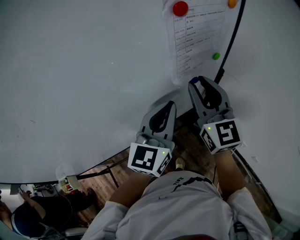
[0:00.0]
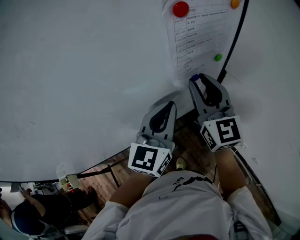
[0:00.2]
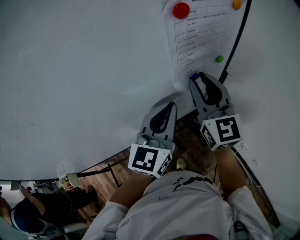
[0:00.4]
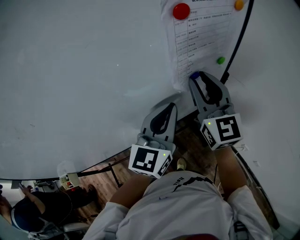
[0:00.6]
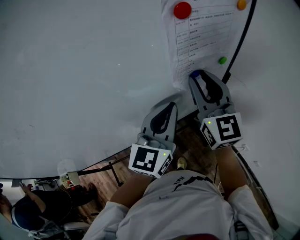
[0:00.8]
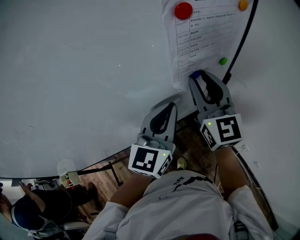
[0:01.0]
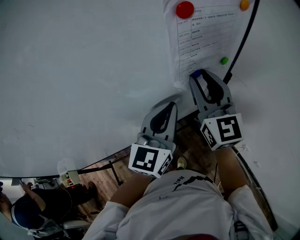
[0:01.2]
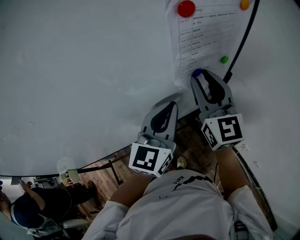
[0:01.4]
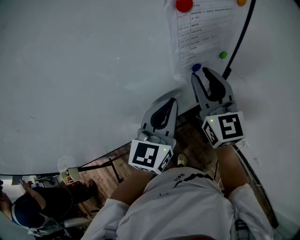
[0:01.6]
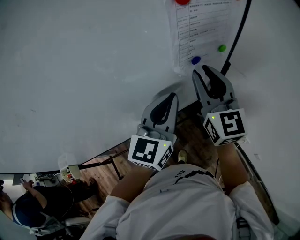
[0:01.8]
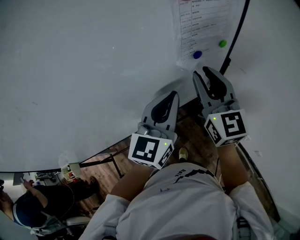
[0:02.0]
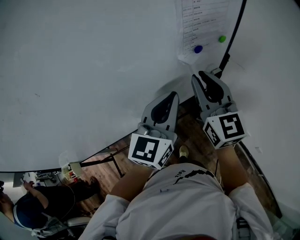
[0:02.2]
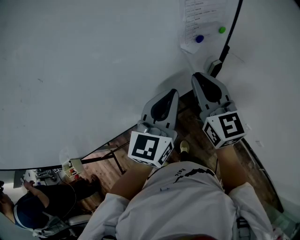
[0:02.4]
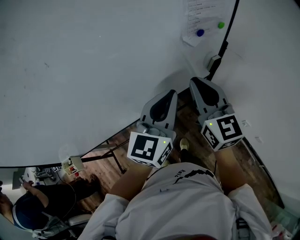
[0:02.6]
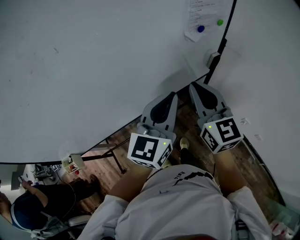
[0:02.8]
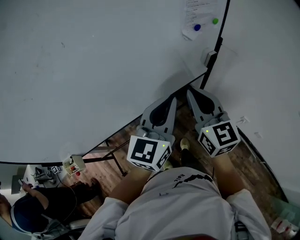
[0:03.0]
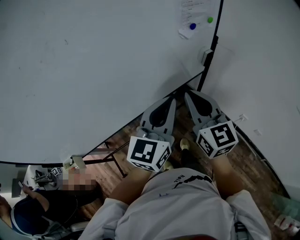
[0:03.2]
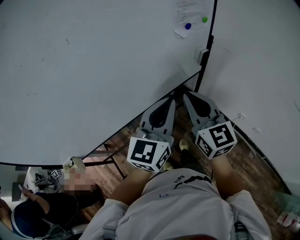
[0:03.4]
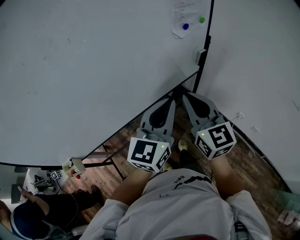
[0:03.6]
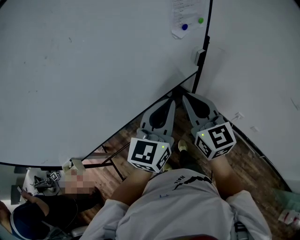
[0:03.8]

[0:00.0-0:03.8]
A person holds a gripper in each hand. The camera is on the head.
0:00.0 to 0:01.2: The grippers stay close to where they were, moving slightly.
0:01.2 to 0:02.6: The two grippers go some 15 cm backward. The right gripper closes up.
0:02.6 to 0:03.8: Both grippers move backward, approximately 10 cm.

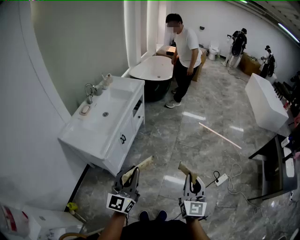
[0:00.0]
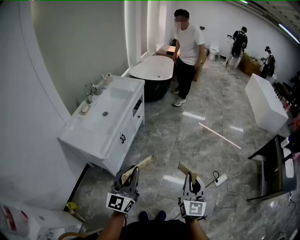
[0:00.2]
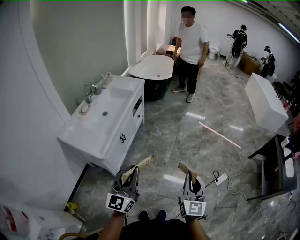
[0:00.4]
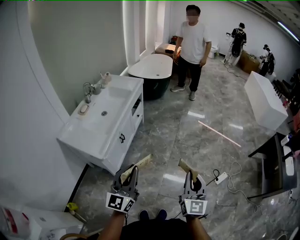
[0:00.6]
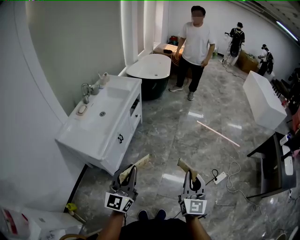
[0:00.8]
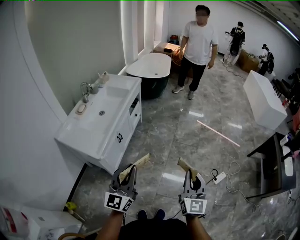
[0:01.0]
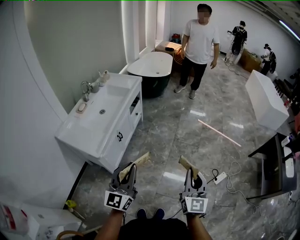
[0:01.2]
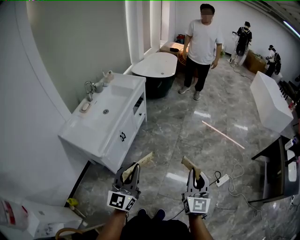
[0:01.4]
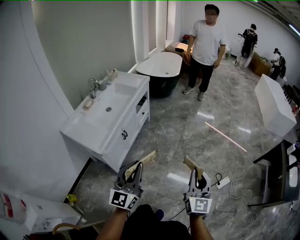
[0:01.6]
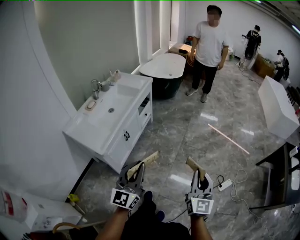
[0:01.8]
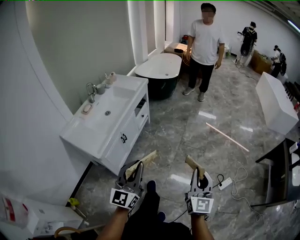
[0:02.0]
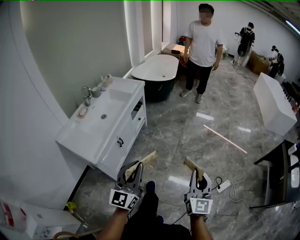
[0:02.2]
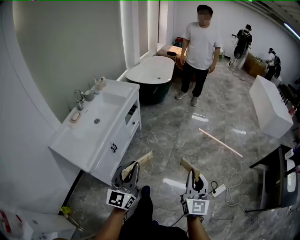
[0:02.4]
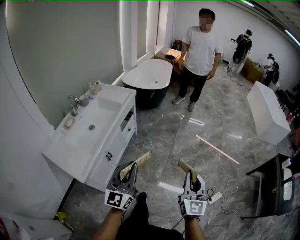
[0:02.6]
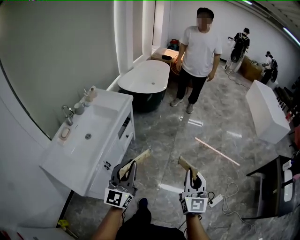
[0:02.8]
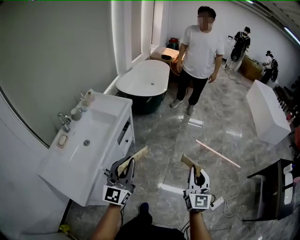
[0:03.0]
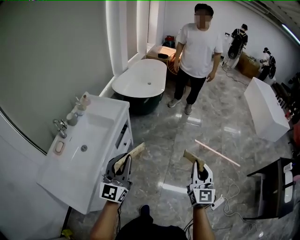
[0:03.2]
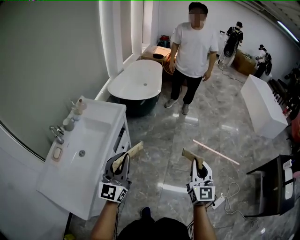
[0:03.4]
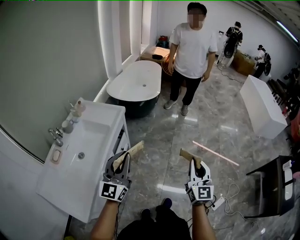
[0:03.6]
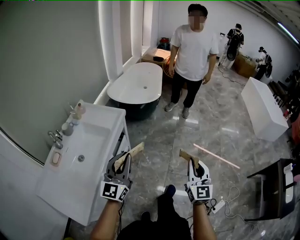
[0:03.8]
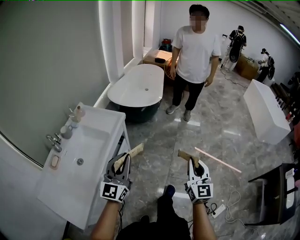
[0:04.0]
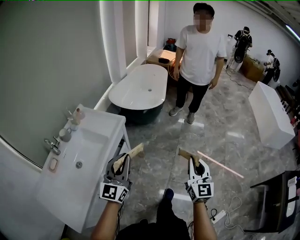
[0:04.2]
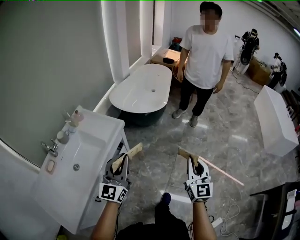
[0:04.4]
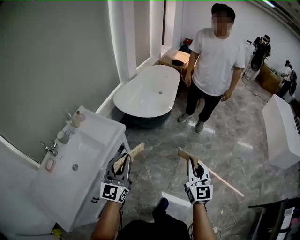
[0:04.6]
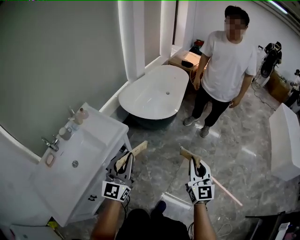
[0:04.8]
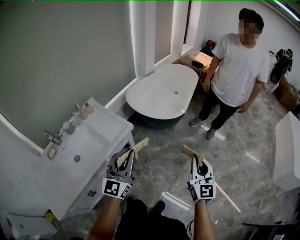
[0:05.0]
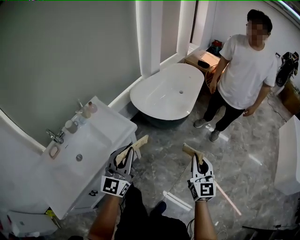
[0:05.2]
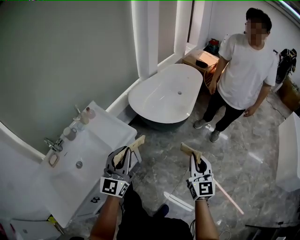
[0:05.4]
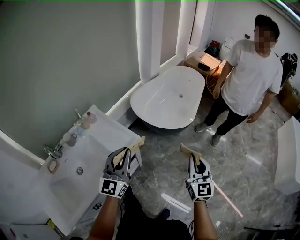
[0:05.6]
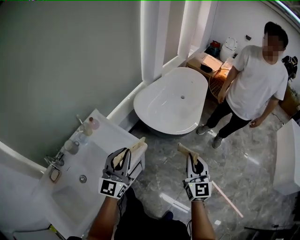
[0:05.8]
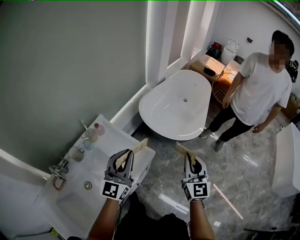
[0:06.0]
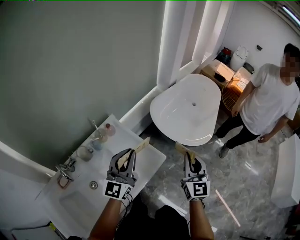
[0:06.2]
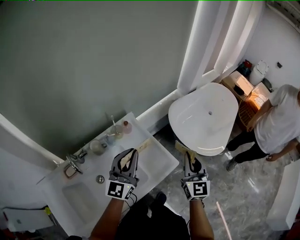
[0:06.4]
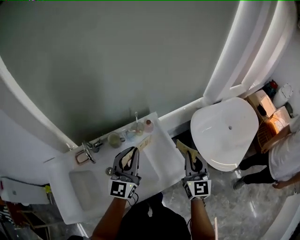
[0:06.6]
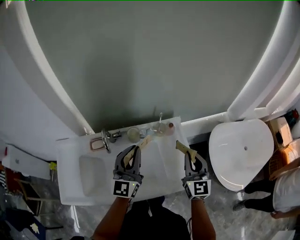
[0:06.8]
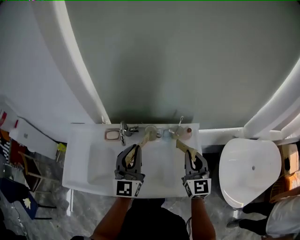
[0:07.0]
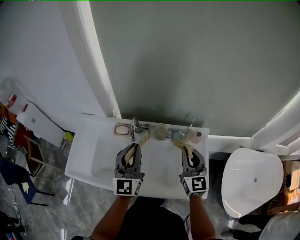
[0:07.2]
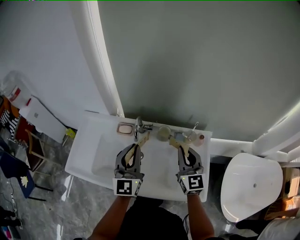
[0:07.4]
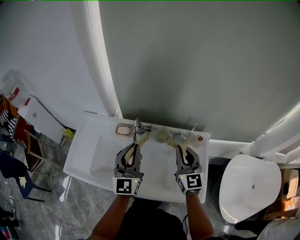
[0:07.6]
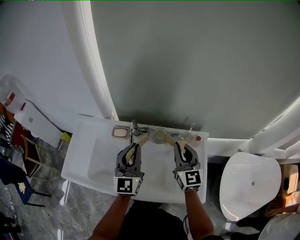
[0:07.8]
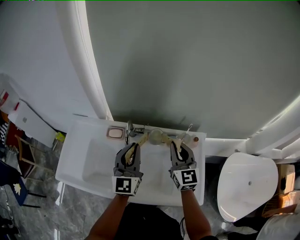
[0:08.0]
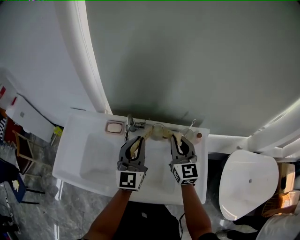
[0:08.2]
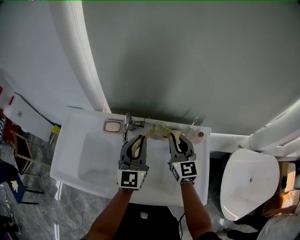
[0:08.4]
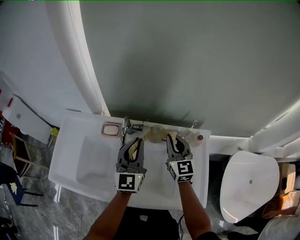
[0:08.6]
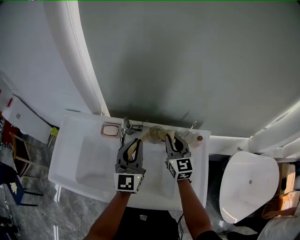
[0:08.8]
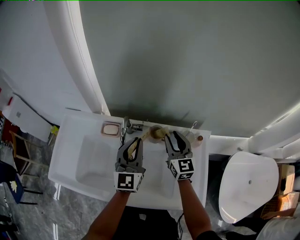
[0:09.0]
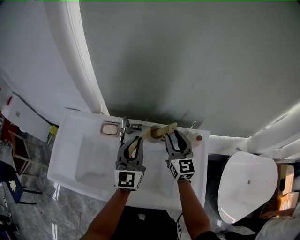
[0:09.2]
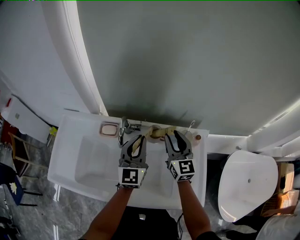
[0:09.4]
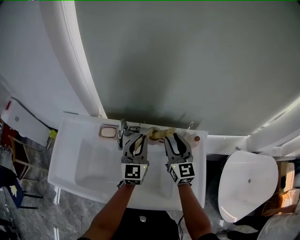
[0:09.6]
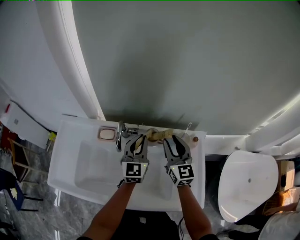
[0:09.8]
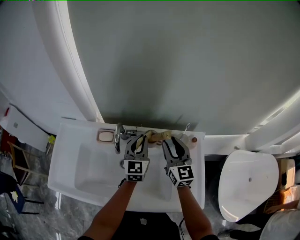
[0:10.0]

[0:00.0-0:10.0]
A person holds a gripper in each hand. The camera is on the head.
0:00.0 to 0:01.4: The left gripper shifts by roughly 5 cm, while the right gripper shifts by about 5 cm.
0:01.4 to 0:02.8: The grippers both shift forward by some 30 cm.
0:02.8 to 0:04.2: The grippers both shift forward by about 35 cm.
0:04.2 to 0:05.8: Both grippers move forward, some 40 cm.
0:05.8 to 0:07.2: The left gripper moves about 40 cm, and rotates about 70 degrees; the right gripper moves some 50 cm, and changes its angle by roughly 70 degrees.
0:07.2 to 0:08.6: The right gripper travels forward and downward by roughly 15 cm. The left gripper shifts about 15 cm downward and forward.
0:08.6 to 0:10.0: The left gripper moves downward, forward and to the right, about 10 cm. Meanwhile the right gripper opens up.

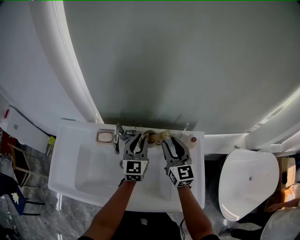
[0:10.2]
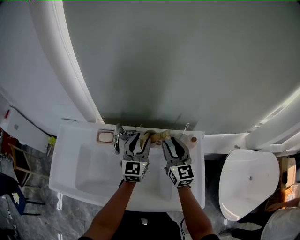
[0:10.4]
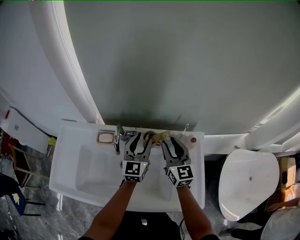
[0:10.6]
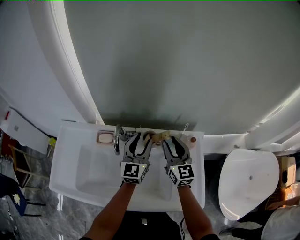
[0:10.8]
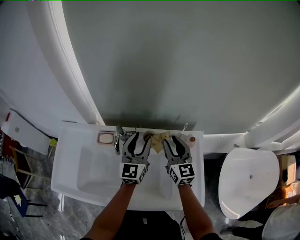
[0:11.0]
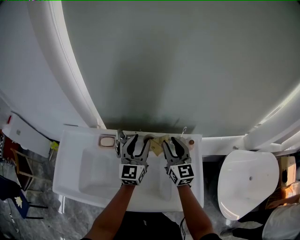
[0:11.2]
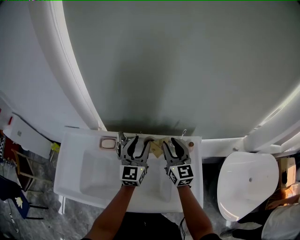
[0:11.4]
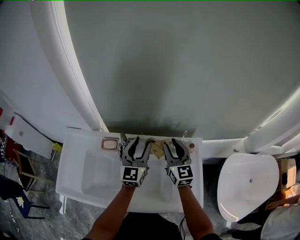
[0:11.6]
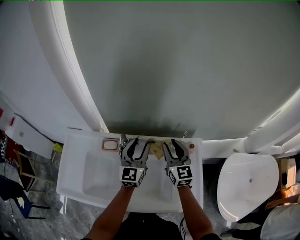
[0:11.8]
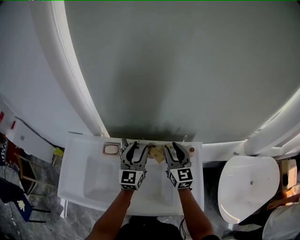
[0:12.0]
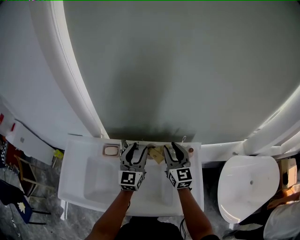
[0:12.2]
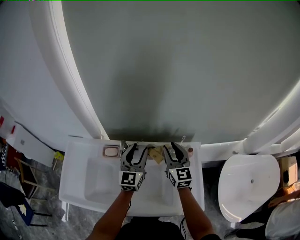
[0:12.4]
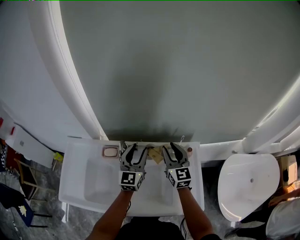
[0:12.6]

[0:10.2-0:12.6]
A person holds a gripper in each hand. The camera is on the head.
0:10.2 to 0:11.4: The left gripper heads upward, covering about 10 cm, and opens.
0:11.4 to 0:12.6: The grippers move only a little.

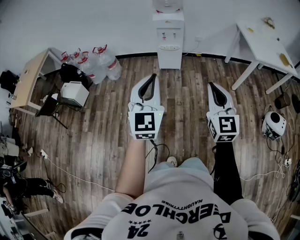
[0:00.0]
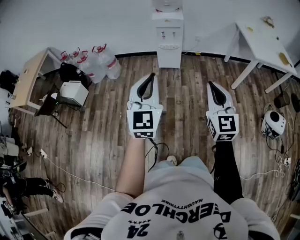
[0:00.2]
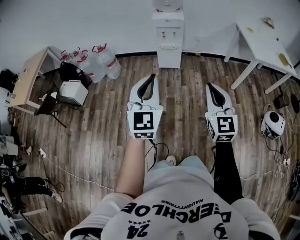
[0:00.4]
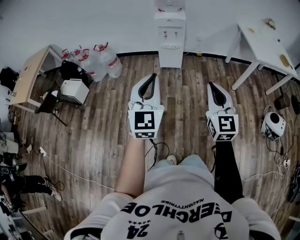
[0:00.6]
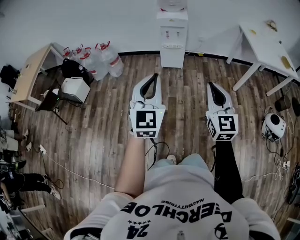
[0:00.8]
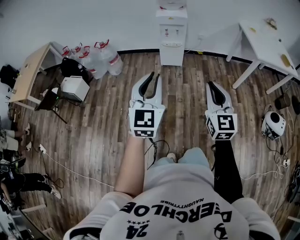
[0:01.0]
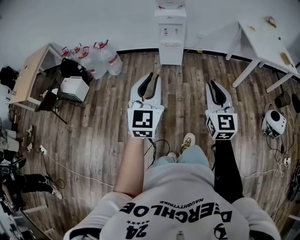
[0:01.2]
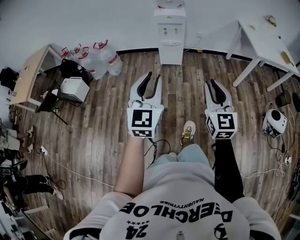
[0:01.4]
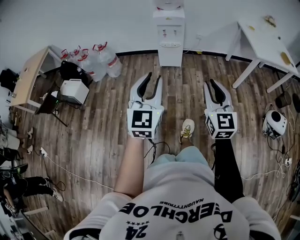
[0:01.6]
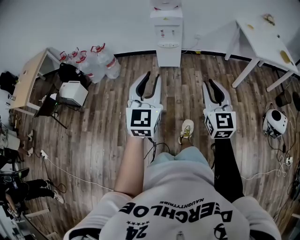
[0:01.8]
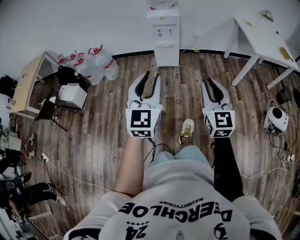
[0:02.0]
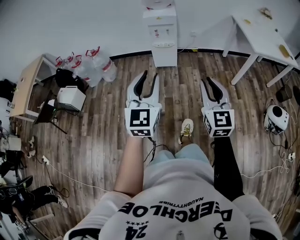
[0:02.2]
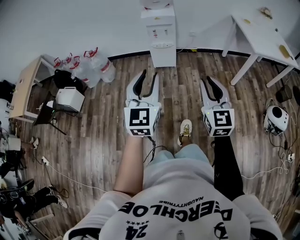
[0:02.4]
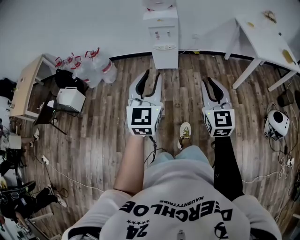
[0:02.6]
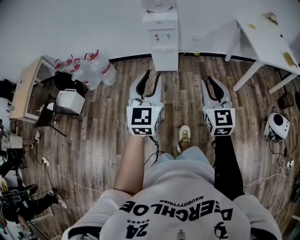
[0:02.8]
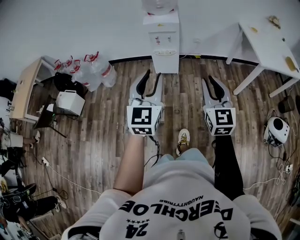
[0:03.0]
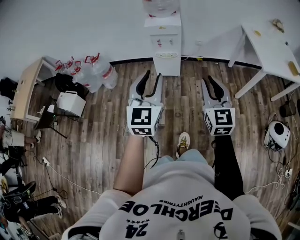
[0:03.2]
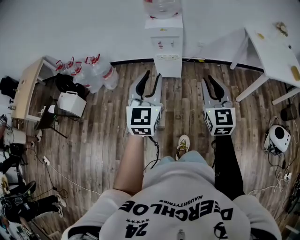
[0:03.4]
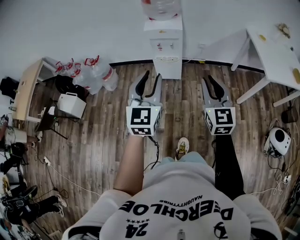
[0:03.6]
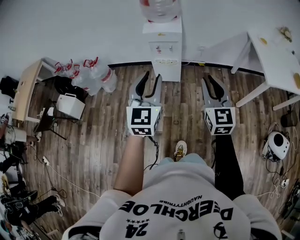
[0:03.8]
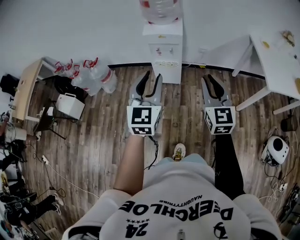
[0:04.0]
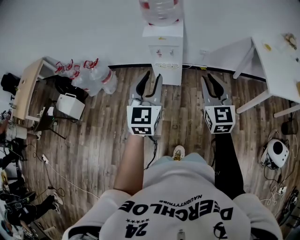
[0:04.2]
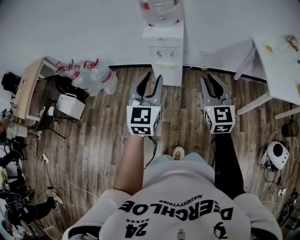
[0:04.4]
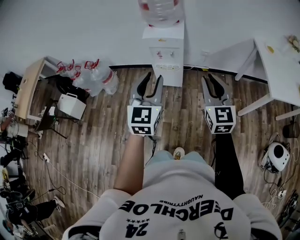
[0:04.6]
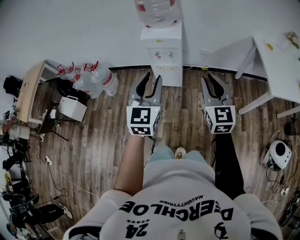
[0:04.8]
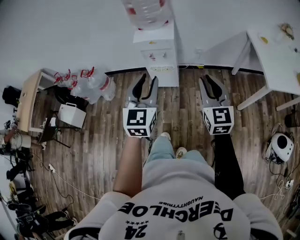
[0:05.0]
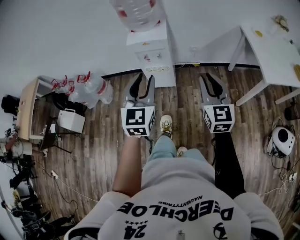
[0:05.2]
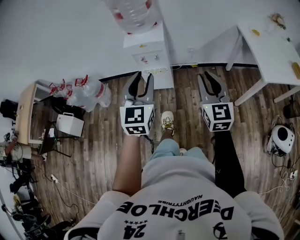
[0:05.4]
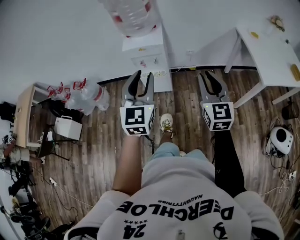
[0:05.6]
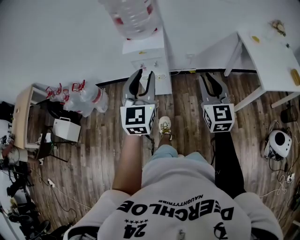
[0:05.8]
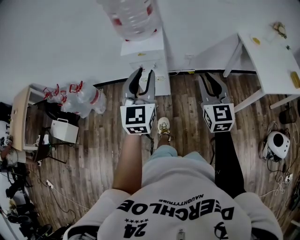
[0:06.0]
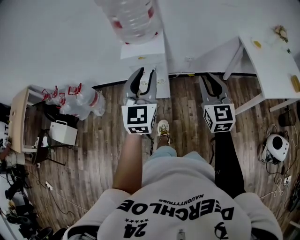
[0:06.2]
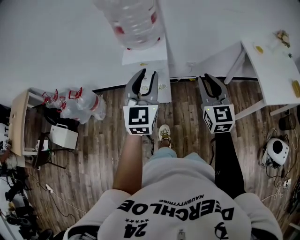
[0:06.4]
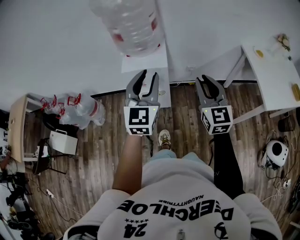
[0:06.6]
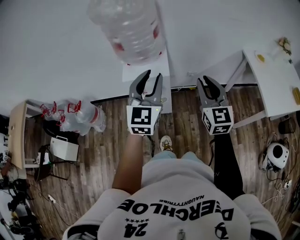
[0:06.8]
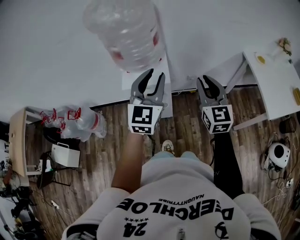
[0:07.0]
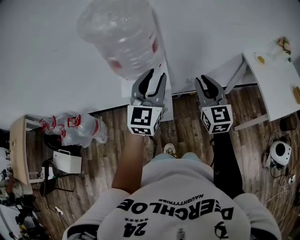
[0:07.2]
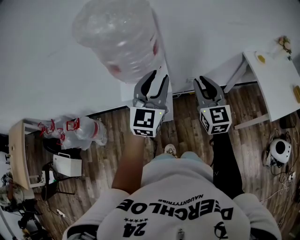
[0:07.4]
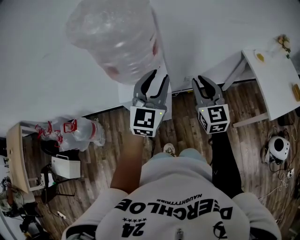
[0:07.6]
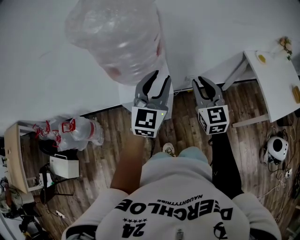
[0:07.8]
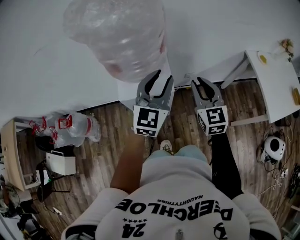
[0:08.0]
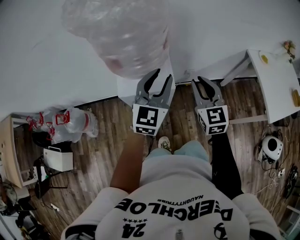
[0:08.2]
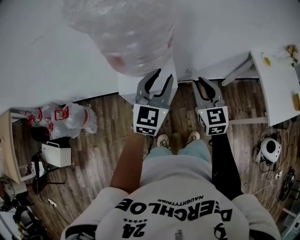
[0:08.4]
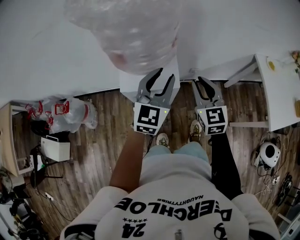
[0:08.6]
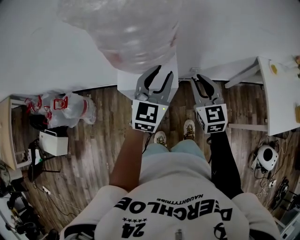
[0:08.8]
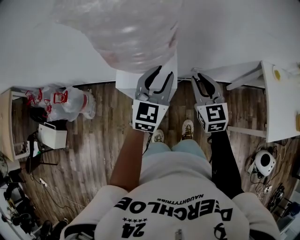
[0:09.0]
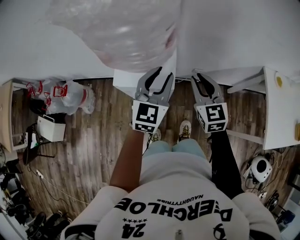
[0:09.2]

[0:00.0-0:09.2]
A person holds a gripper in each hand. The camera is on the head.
0:00.0 to 0:01.6: The grippers make only small movements.
0:01.6 to 0:03.0: Both grippers travel together forward, some 20 cm.
0:03.0 to 0:04.6: Both grippers travel together forward, roughly 25 cm.
0:04.6 to 0:06.2: The left gripper travels forward by about 15 cm, while the right gripper heads forward and to the right, covering some 15 cm.
0:06.2 to 0:07.6: The two grippers go some 25 cm forward.
0:07.6 to 0:09.2: Both grippers move downward and forward, about 10 cm. The right gripper swivels about 20 degrees.
